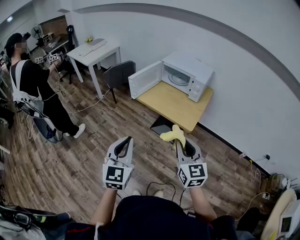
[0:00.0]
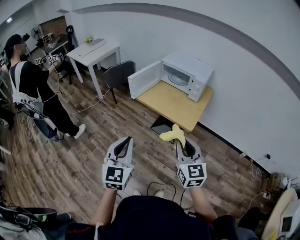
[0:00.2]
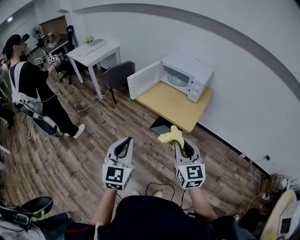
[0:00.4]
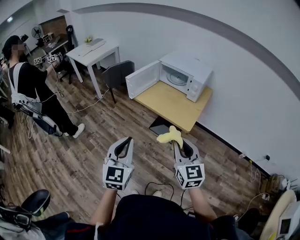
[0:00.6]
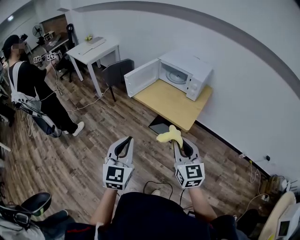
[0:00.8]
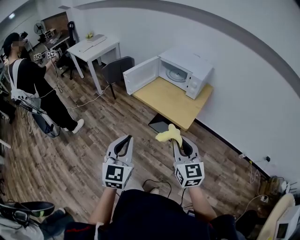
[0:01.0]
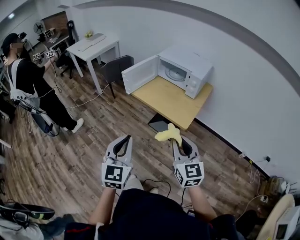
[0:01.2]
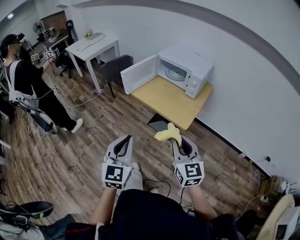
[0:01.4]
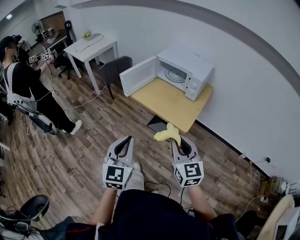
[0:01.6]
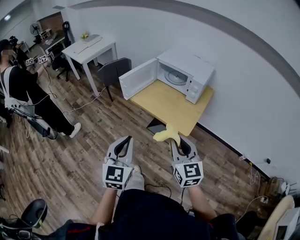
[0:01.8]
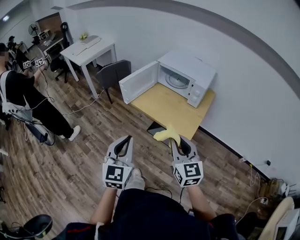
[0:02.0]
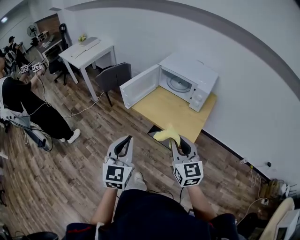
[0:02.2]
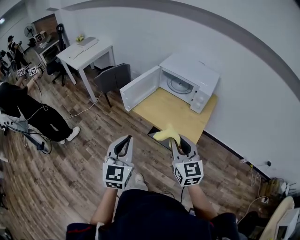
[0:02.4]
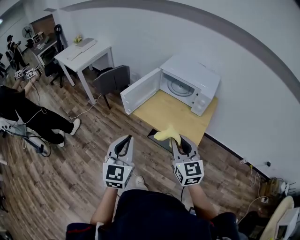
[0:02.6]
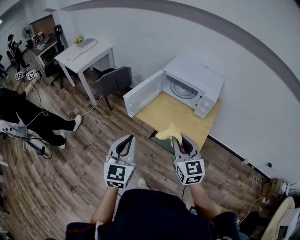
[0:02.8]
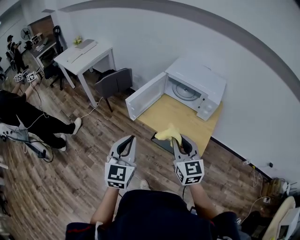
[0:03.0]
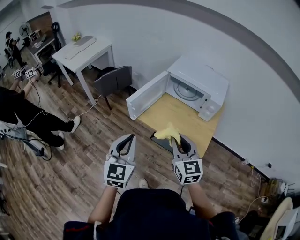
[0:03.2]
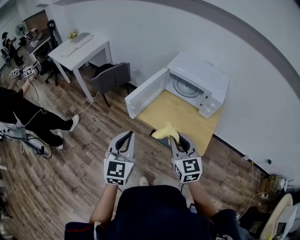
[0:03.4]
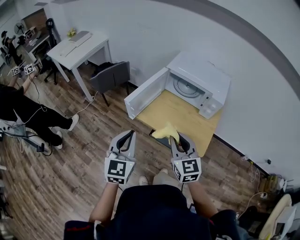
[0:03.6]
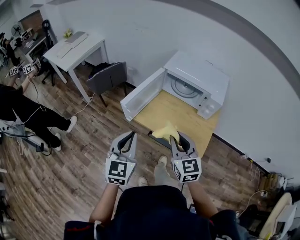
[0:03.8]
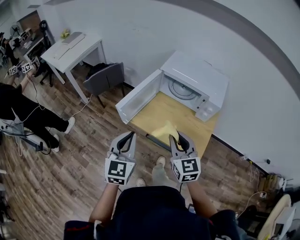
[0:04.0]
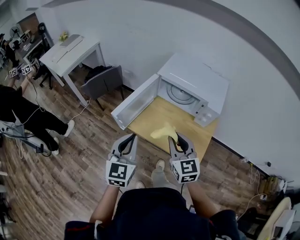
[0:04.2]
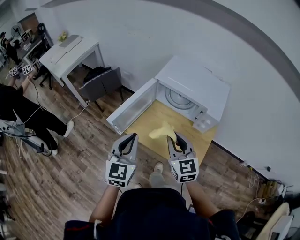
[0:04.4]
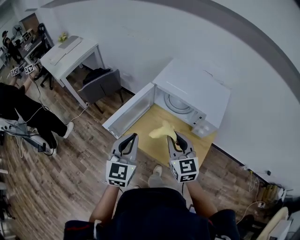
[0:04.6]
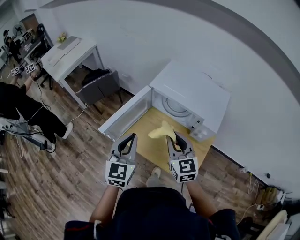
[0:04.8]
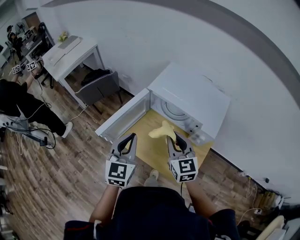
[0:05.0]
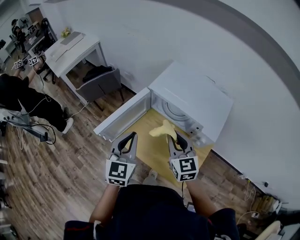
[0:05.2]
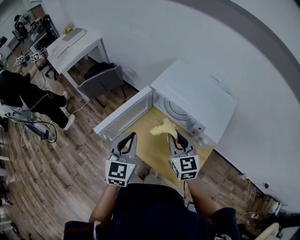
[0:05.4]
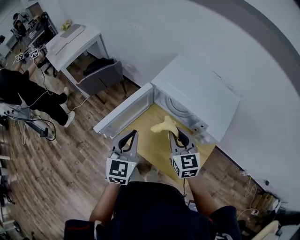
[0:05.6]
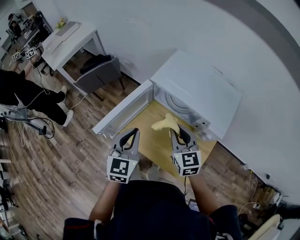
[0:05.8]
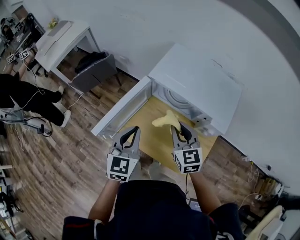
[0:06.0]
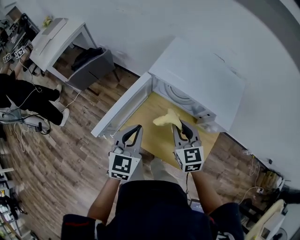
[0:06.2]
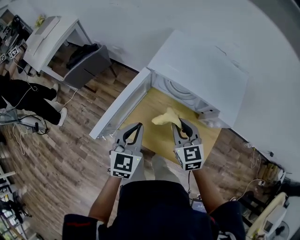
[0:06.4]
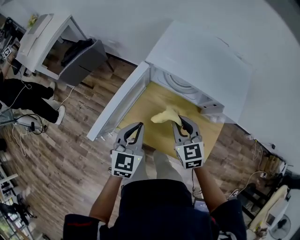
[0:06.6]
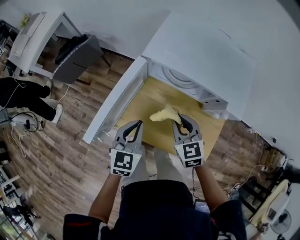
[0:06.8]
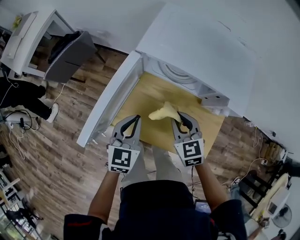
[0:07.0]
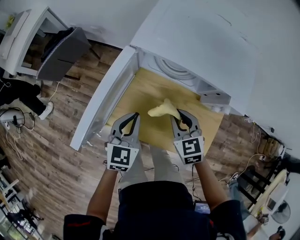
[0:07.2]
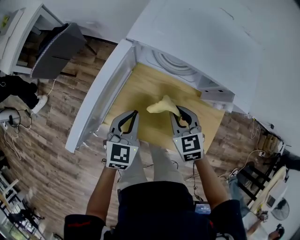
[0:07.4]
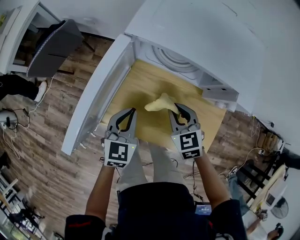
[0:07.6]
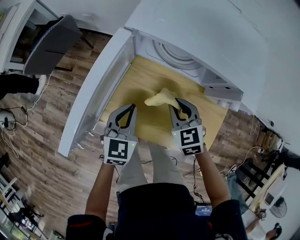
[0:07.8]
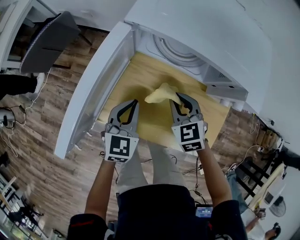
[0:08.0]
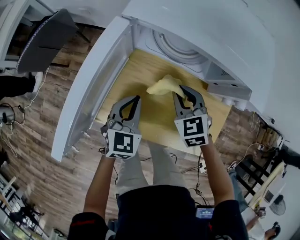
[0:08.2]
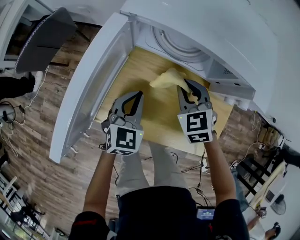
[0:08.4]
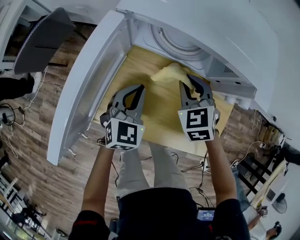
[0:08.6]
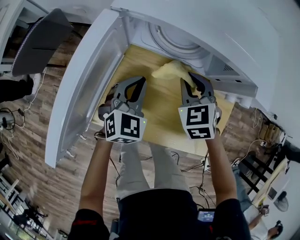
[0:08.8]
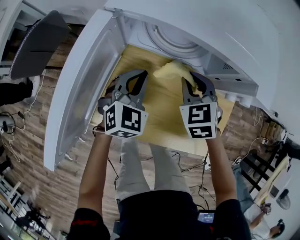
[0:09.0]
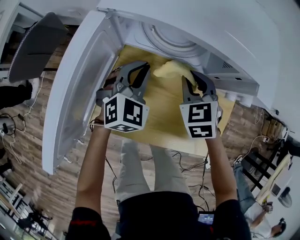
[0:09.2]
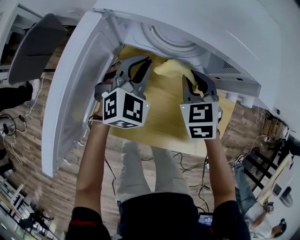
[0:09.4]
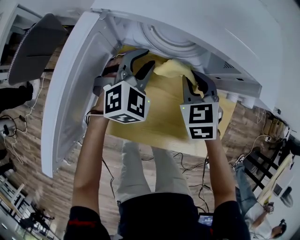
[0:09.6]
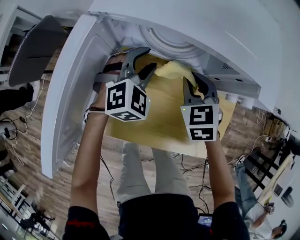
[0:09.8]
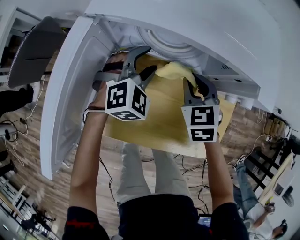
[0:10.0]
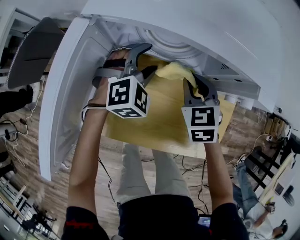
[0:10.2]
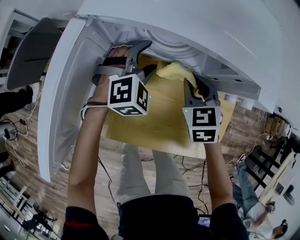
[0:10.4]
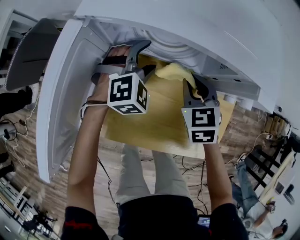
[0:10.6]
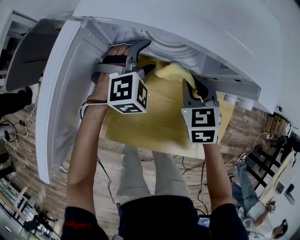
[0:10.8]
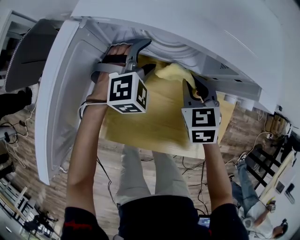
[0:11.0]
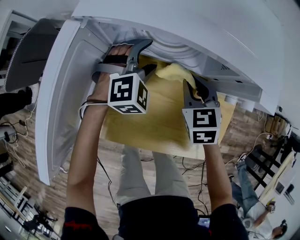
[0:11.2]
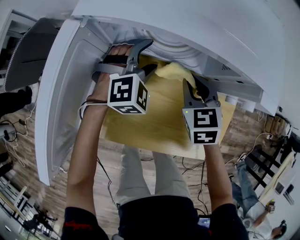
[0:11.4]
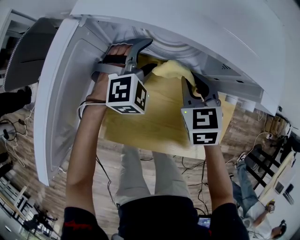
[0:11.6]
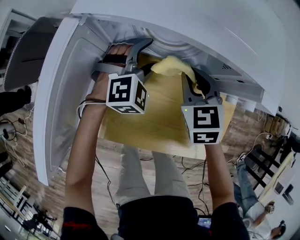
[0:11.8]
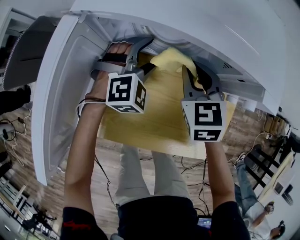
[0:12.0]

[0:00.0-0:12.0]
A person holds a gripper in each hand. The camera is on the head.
0:00.0 to 0:01.6: The left gripper heads to the right, covering roughly 5 cm. Meanwhile the right gripper is displaced forward by roughly 5 cm.
0:01.6 to 0:03.0: The grippers both shift forward and to the left by some 25 cm.
0:03.0 to 0:04.4: The grippers both shift forward by approximately 20 cm.
0:04.4 to 0:06.0: Both grippers move forward, downward and to the right, roughly 15 cm.
0:06.0 to 0:07.6: The grippers both shift downward by about 20 cm. The right gripper swivels about 20 degrees.
0:07.6 to 0:09.0: The right gripper heads forward, covering about 10 cm. The left gripper is displaced forward and to the right by some 10 cm, and changes its angle by roughly 20 degrees.
0:09.0 to 0:10.4: The left gripper is displaced forward by about 10 cm, rotates about 30 degrees, and opens its fingers.
0:10.4 to 0:12.0: The grippers stay close to where they were, moving slightly.

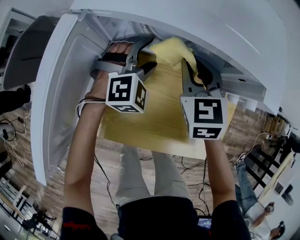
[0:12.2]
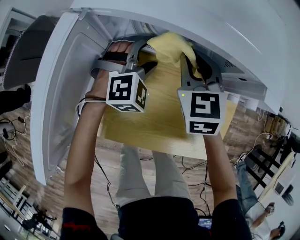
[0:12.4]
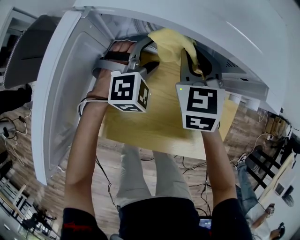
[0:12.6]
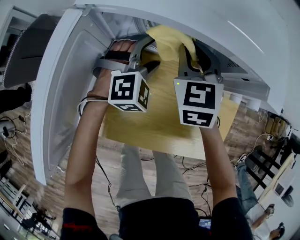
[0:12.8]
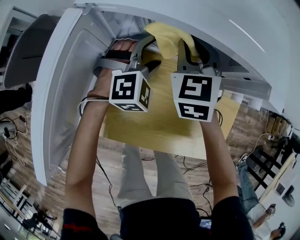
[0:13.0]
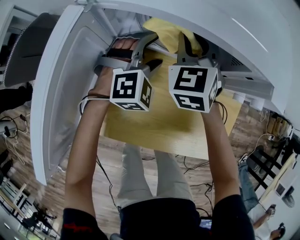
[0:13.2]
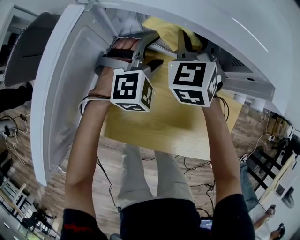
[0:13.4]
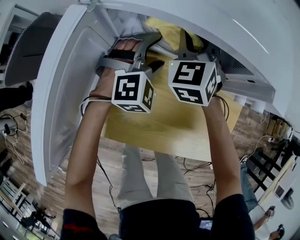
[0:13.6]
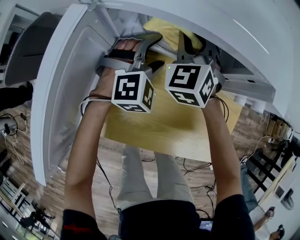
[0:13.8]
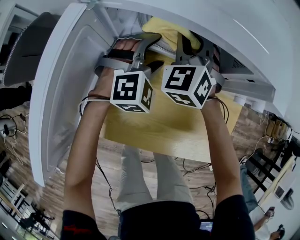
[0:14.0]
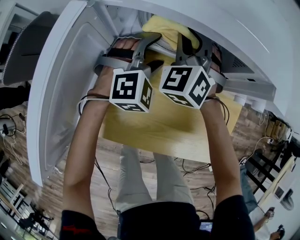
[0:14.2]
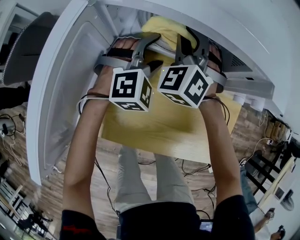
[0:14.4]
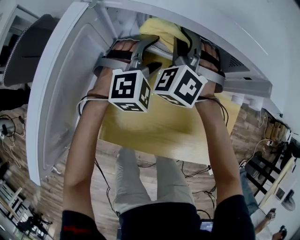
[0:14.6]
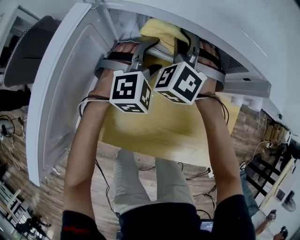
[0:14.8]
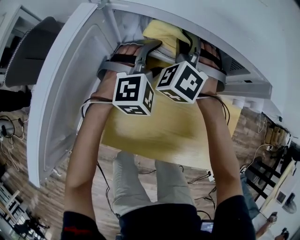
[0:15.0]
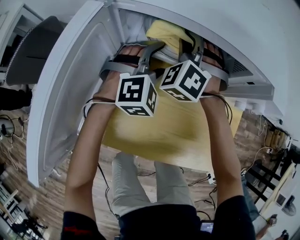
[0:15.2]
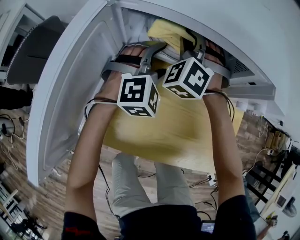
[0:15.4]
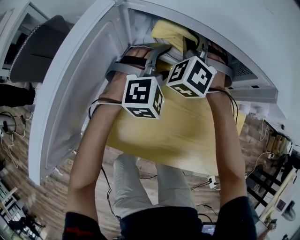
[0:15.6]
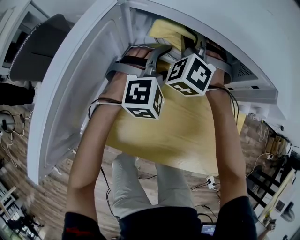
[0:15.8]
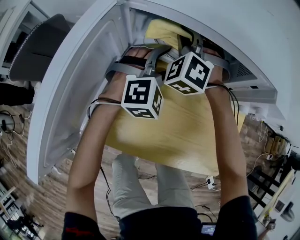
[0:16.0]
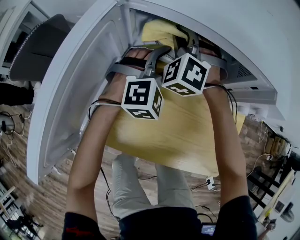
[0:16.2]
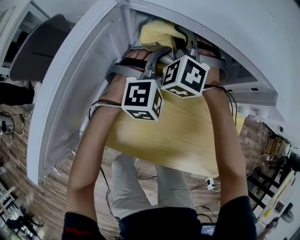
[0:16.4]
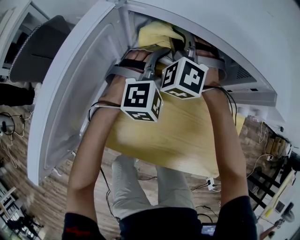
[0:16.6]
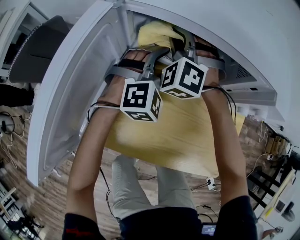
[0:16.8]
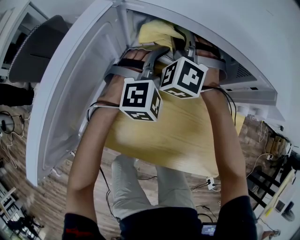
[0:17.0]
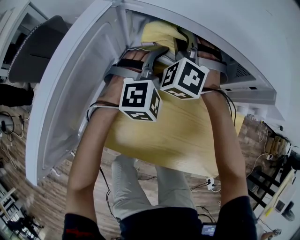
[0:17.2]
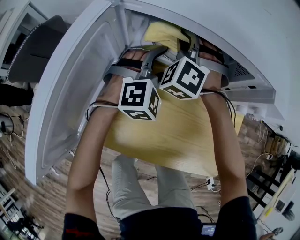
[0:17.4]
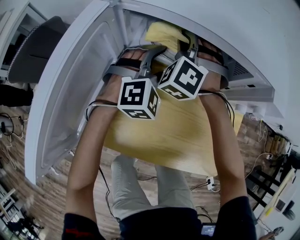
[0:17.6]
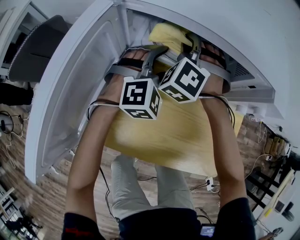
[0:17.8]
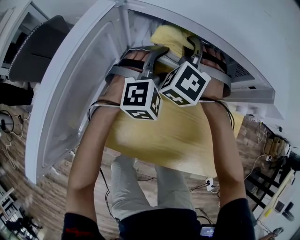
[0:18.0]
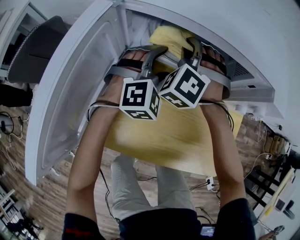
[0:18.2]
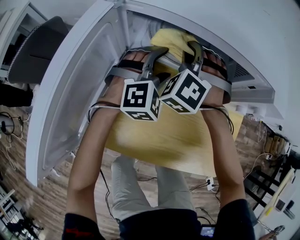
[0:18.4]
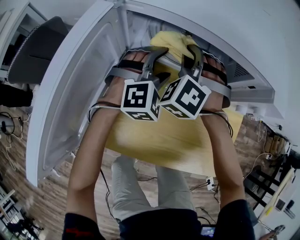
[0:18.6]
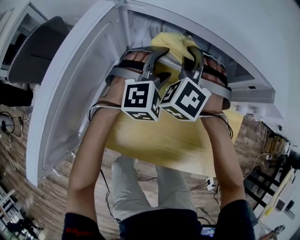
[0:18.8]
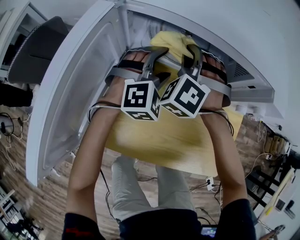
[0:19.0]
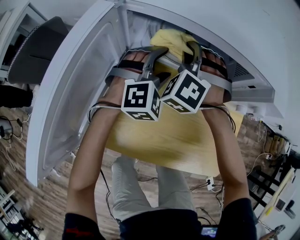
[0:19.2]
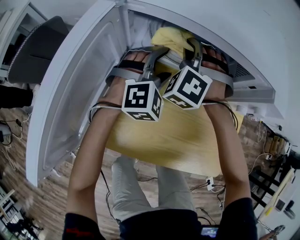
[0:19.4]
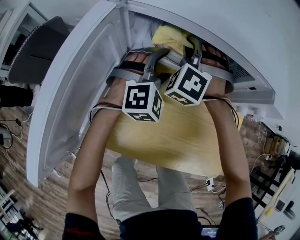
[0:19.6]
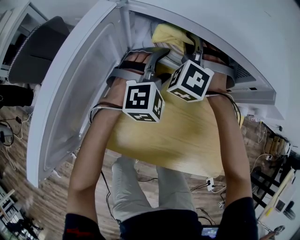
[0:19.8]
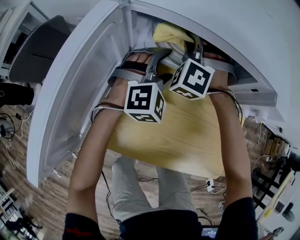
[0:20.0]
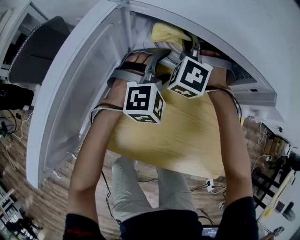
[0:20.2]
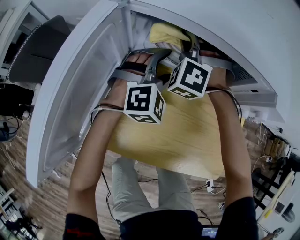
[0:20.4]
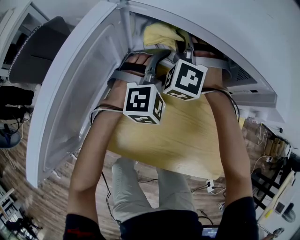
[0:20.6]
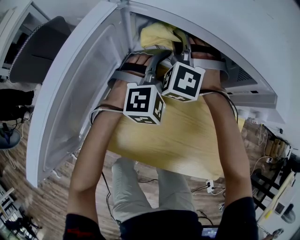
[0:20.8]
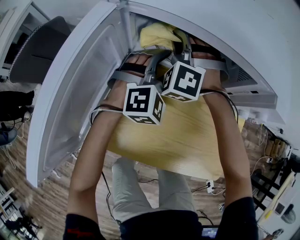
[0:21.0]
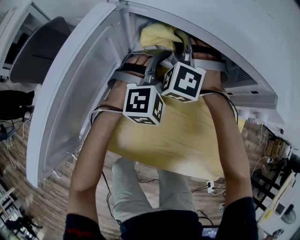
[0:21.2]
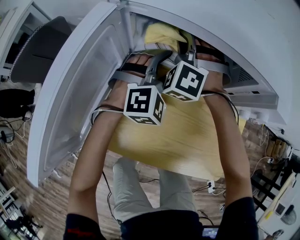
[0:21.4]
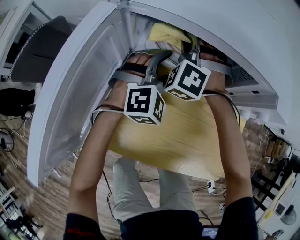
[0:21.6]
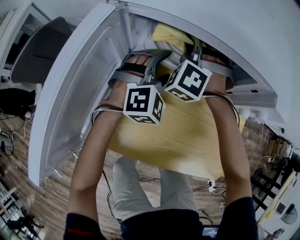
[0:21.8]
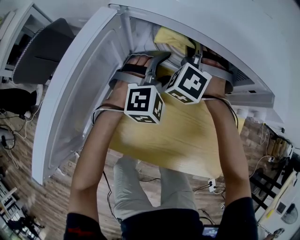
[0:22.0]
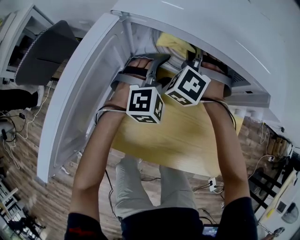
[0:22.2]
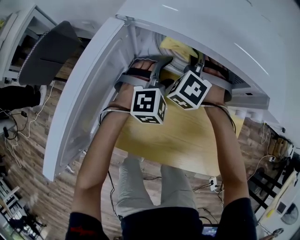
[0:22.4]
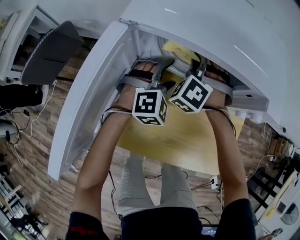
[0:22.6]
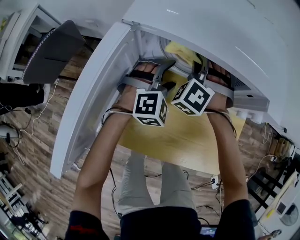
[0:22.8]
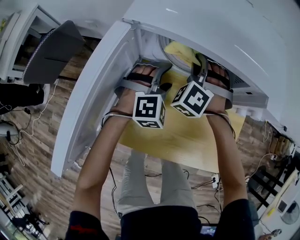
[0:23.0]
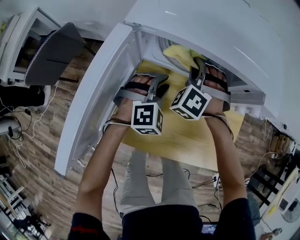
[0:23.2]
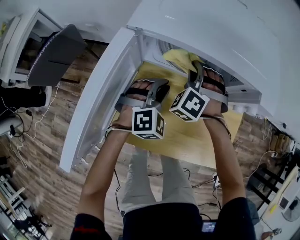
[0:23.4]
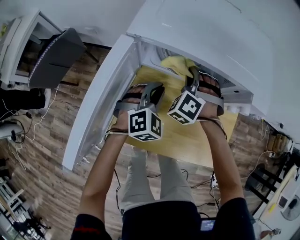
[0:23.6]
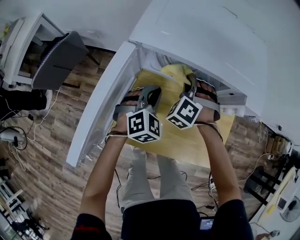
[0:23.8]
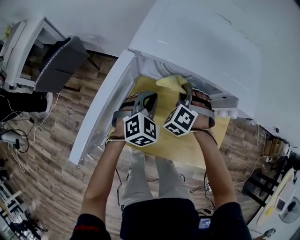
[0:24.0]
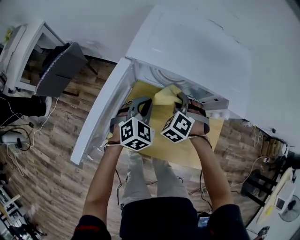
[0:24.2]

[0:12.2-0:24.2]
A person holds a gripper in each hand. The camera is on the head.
0:12.2 to 0:13.8: The right gripper goes some 10 cm forward and to the left, and rotates about 30 degrees.
0:13.8 to 0:15.2: The right gripper turns by some 30 degrees.
0:15.2 to 0:16.6: The right gripper is displaced to the left by some 5 cm.
0:16.6 to 0:18.2: The right gripper is displaced to the right by approximately 5 cm.
0:18.2 to 0:21.2: There are only small adjustments of the grippers.
0:21.2 to 0:22.6: The right gripper shifts approximately 5 cm to the right.
0:22.6 to 0:24.2: The left gripper is displaced backward and upward by roughly 10 cm, swivels some 30 degrees, and closes. The right gripper travels backward by about 10 cm.
